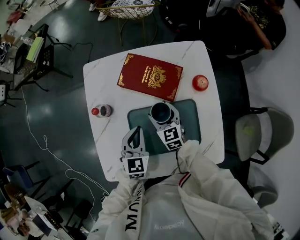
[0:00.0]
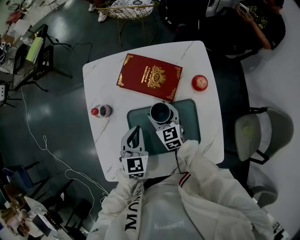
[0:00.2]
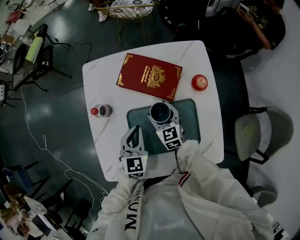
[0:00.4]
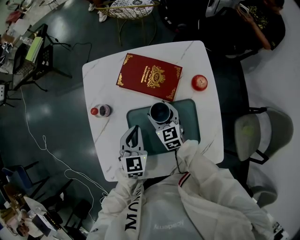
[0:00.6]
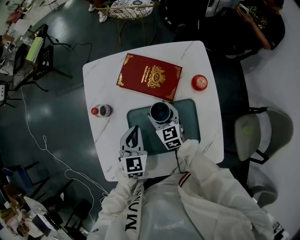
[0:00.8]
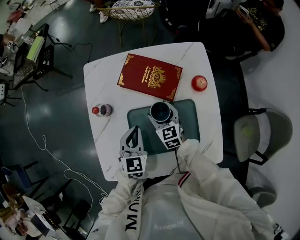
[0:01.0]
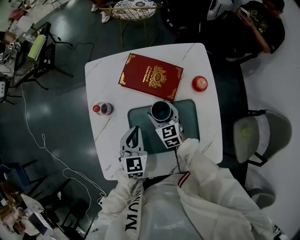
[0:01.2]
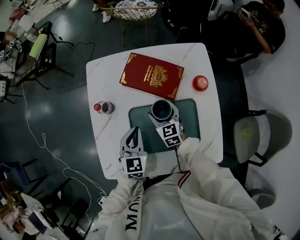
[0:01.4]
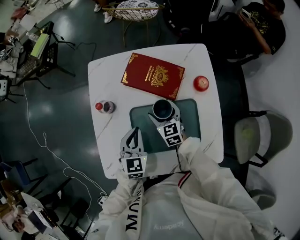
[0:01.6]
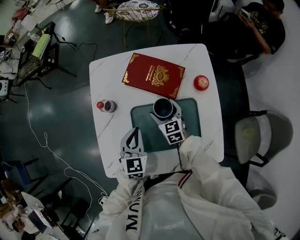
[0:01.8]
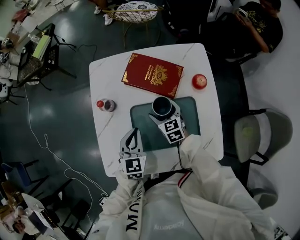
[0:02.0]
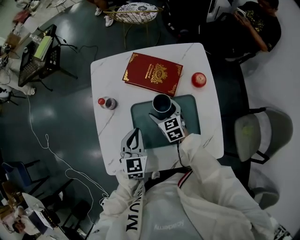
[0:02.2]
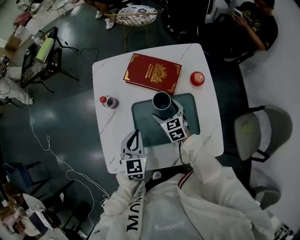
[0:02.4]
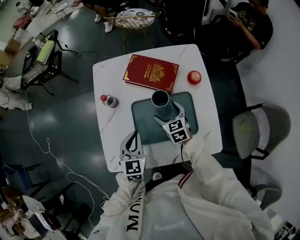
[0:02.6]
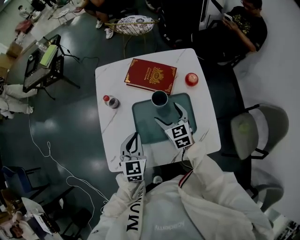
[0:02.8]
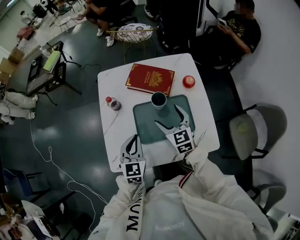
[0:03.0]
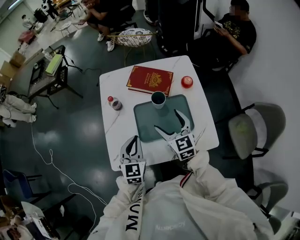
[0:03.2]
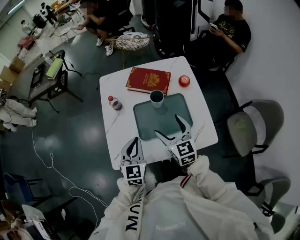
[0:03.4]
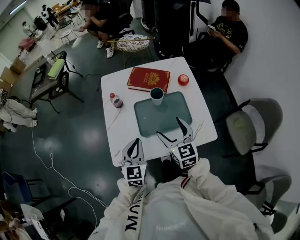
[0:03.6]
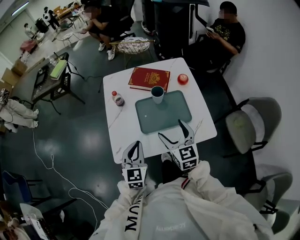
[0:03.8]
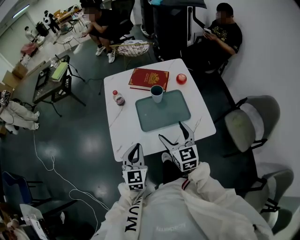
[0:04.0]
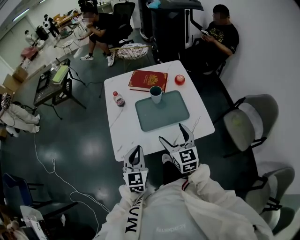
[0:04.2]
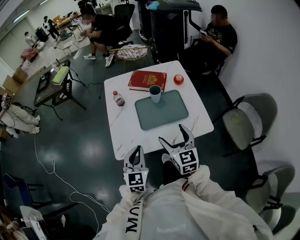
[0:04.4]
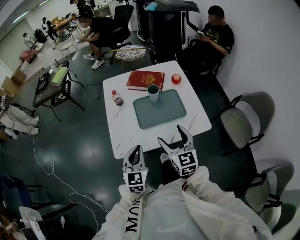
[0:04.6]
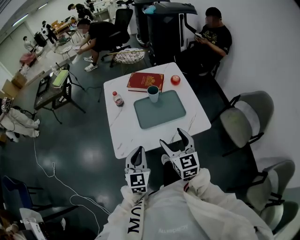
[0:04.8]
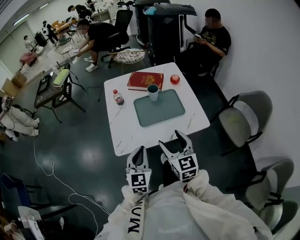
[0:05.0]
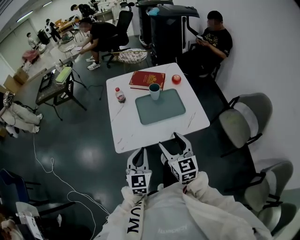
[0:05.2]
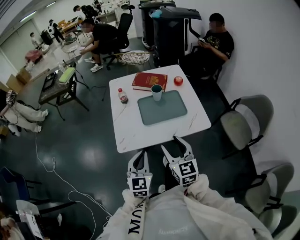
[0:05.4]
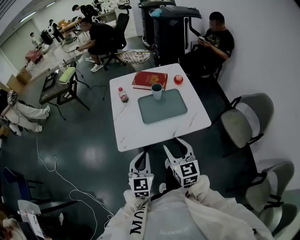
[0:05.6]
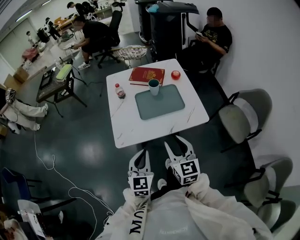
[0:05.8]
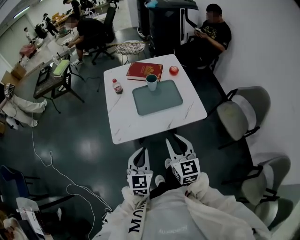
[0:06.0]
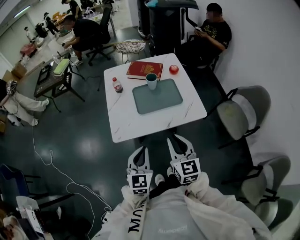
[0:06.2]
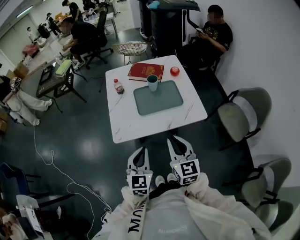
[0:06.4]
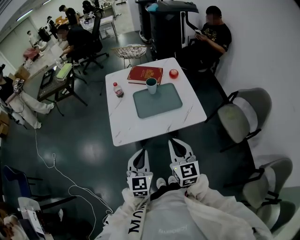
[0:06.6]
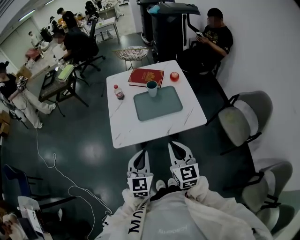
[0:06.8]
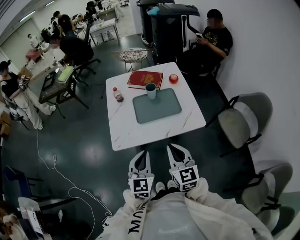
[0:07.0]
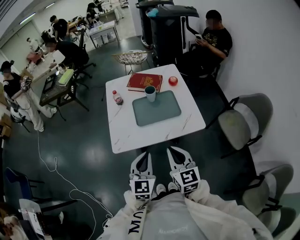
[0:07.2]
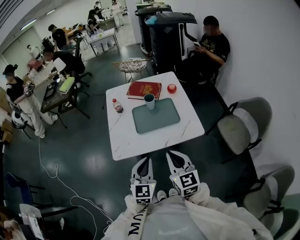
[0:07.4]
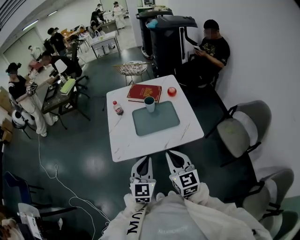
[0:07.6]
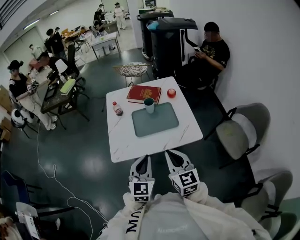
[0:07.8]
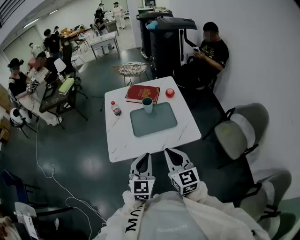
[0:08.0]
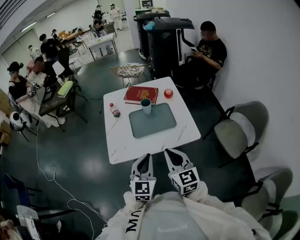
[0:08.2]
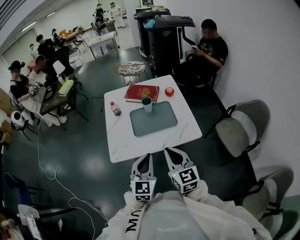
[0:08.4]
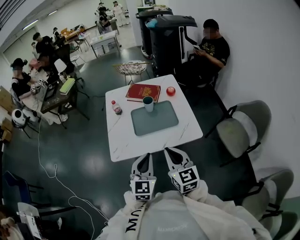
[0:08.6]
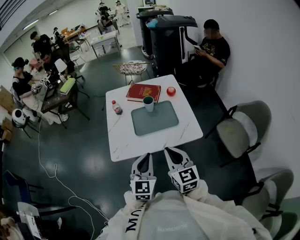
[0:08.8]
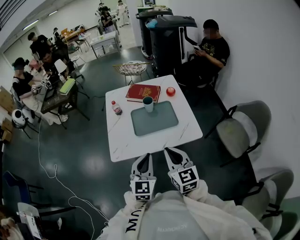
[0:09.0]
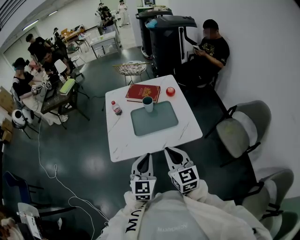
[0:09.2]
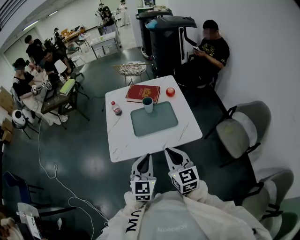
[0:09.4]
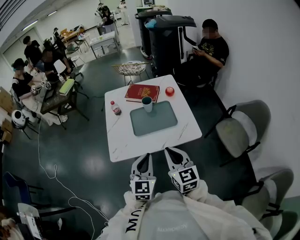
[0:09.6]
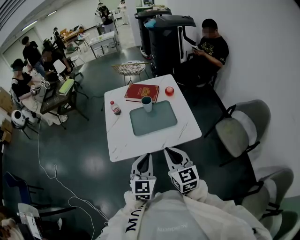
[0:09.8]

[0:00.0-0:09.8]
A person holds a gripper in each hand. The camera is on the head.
0:00.0 to 0:01.4: There are only small adjustments of the grippers.
0:01.4 to 0:02.8: The left gripper heads backward and upward, covering some 10 cm; the right gripper shifts some 10 cm upward and backward.
0:02.8 to 0:04.2: The right gripper goes about 30 cm backward and upward; the left gripper shifts about 20 cm backward.
0:04.2 to 0:05.6: The two grippers go approximately 15 cm backward. The right gripper closes up.
0:05.6 to 0:07.0: The right gripper closes its fingers. Meanwhile the left gripper shifts some 5 cm to the right.
0:07.0 to 0:08.4: The left gripper changes place by roughly 5 cm.
0:08.4 to 0:09.8: Both grippers stay about where they are.

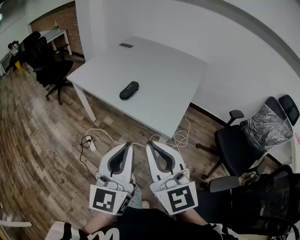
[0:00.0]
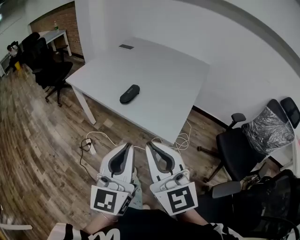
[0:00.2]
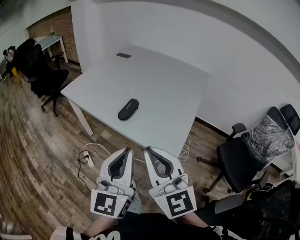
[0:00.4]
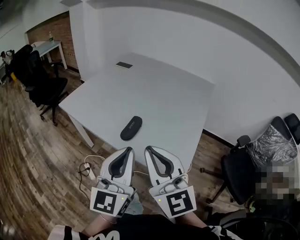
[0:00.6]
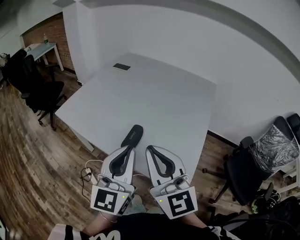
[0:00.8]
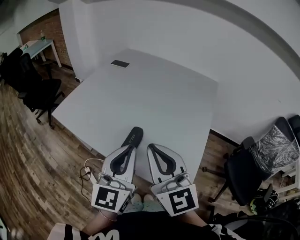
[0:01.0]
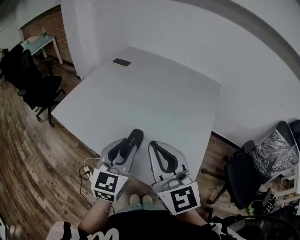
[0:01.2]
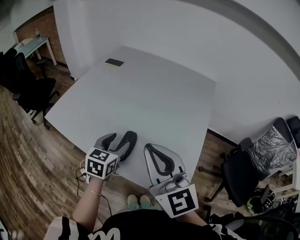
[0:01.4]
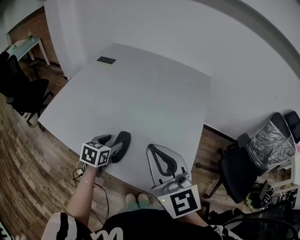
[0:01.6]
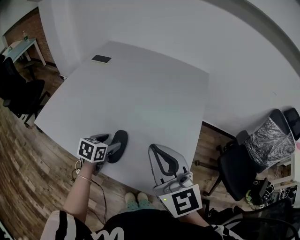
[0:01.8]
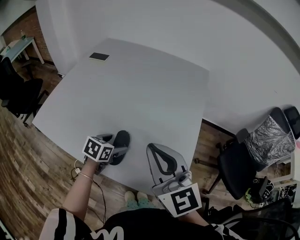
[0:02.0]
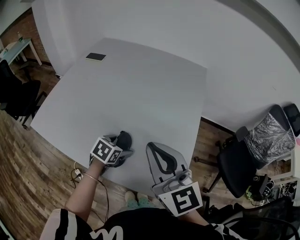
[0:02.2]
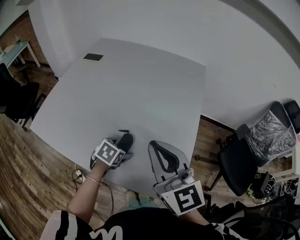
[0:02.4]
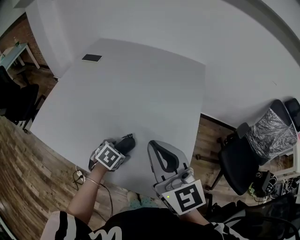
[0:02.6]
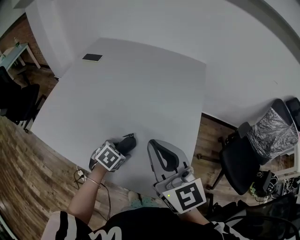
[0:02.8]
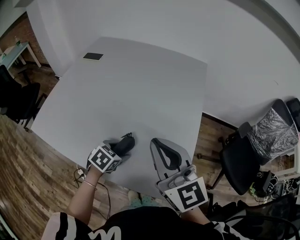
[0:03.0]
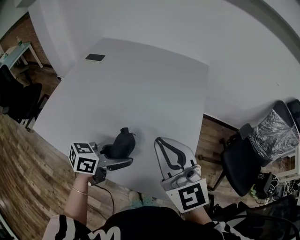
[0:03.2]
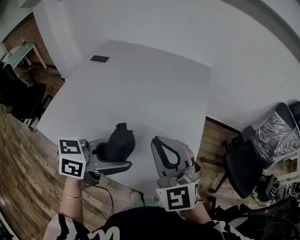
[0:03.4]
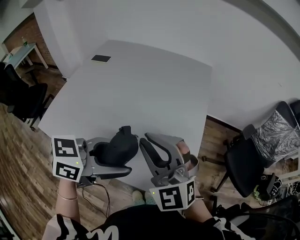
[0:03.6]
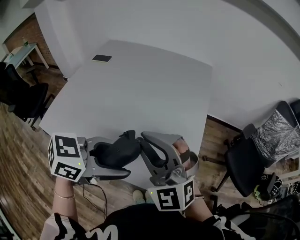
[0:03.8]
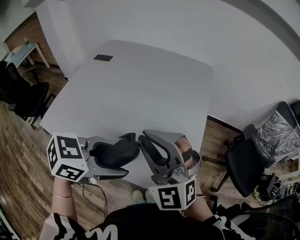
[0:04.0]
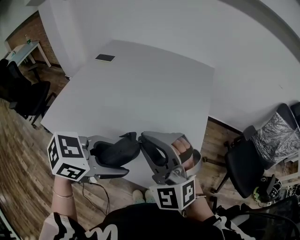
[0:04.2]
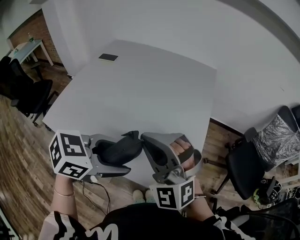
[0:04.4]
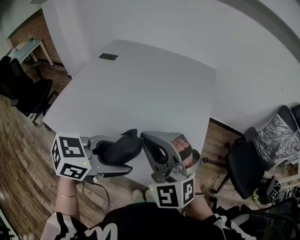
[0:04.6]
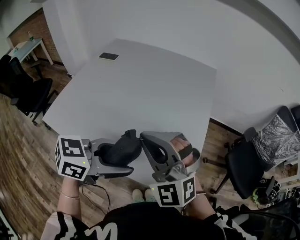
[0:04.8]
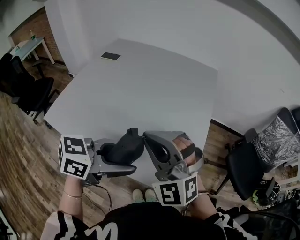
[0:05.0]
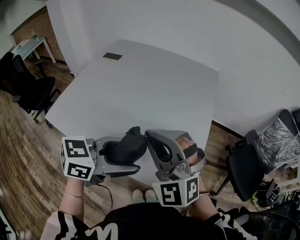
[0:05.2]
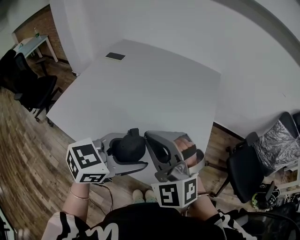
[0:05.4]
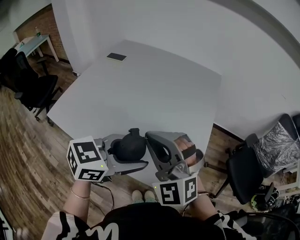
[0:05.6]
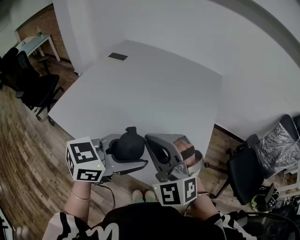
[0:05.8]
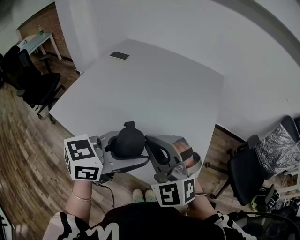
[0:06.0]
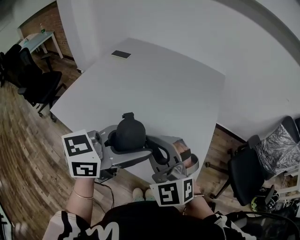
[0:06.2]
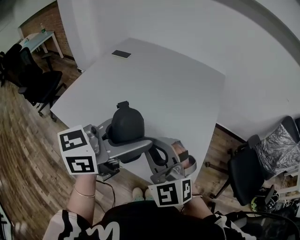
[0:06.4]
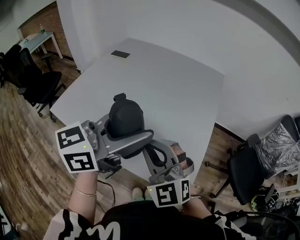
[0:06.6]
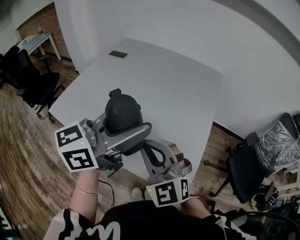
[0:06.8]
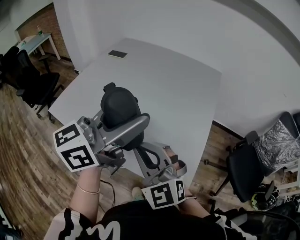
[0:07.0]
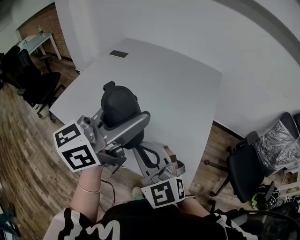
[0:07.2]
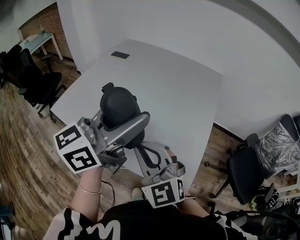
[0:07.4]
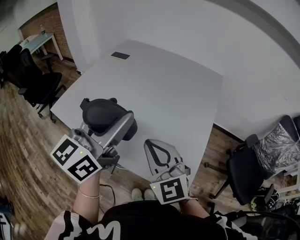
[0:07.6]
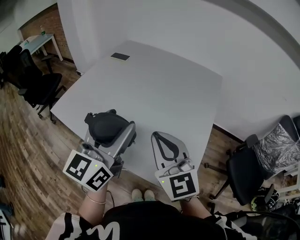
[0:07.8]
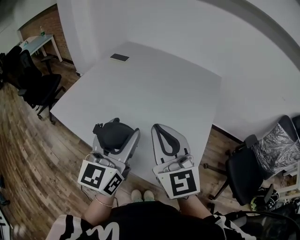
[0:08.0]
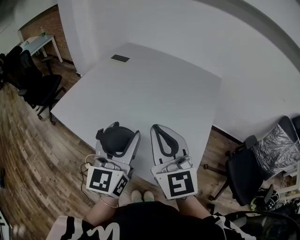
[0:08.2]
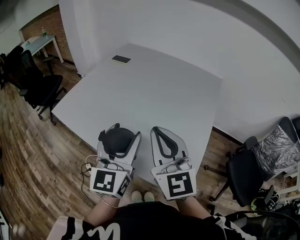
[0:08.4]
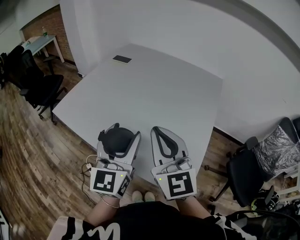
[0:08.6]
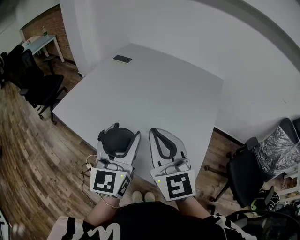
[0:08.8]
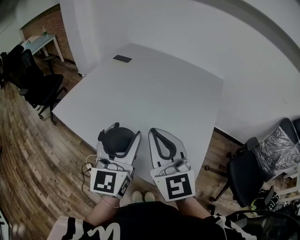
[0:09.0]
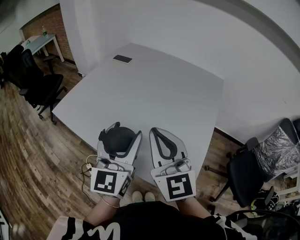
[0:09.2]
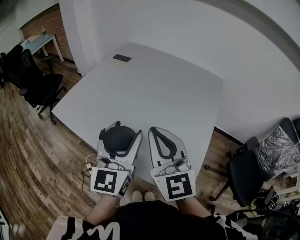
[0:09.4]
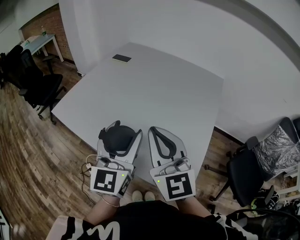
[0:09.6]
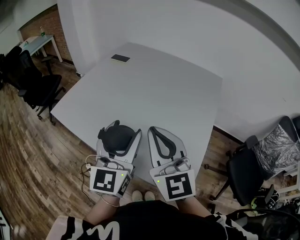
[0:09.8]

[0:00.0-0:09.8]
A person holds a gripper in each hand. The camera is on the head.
0:00.0 to 0:01.4: The grippers both shift forward by about 40 cm. The left gripper angles its fingers downward, by some 40 degrees, and opens its fingers.
0:01.4 to 0:02.8: The right gripper shifts about 10 cm forward and to the right; the left gripper heads downward and to the right, covering about 15 cm, and tilts its fingers approximately 30 degrees downward.
0:02.8 to 0:04.2: The left gripper travels upward by roughly 25 cm, and turns by roughly 30 degrees, while the right gripper shifts some 5 cm backward and to the left, and rolls counterclockwise, seen from behind, by roughly 60 degrees.
0:04.2 to 0:05.6: The grippers move only a little.
0:05.6 to 0:07.0: The left gripper goes about 15 cm upward, and rotates approximately 40 degrees. Meanwhile the right gripper moves some 5 cm, and turns by approximately 20 degrees.
0:07.0 to 0:08.4: The left gripper heads downward, covering approximately 10 cm, and rotates approximately 50 degrees; the right gripper goes some 5 cm upward, and rotates about 30 degrees.
0:08.4 to 0:09.8: The grippers move only a little.

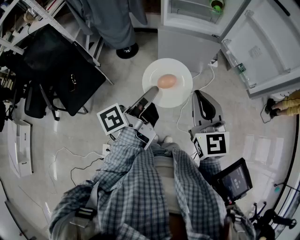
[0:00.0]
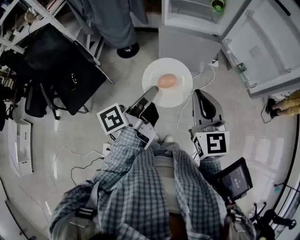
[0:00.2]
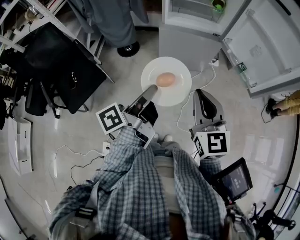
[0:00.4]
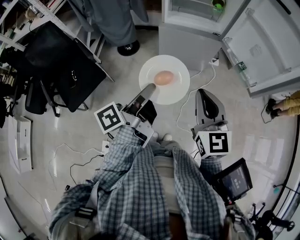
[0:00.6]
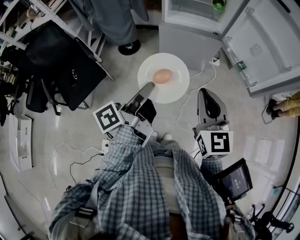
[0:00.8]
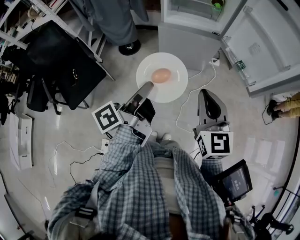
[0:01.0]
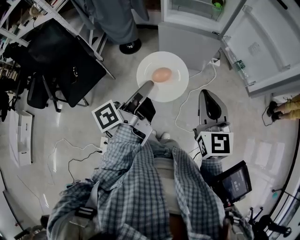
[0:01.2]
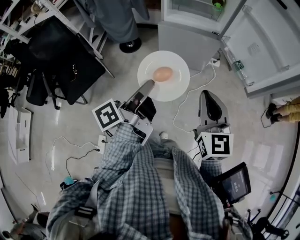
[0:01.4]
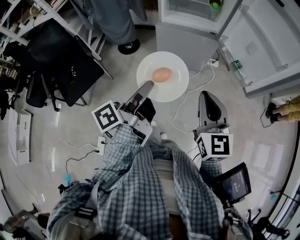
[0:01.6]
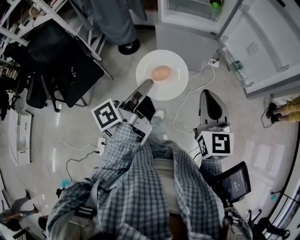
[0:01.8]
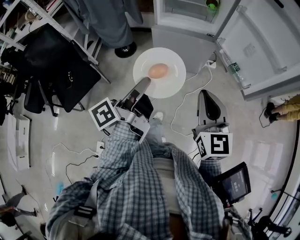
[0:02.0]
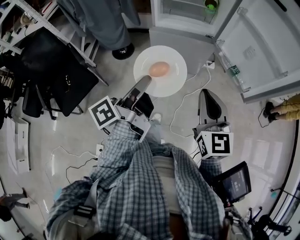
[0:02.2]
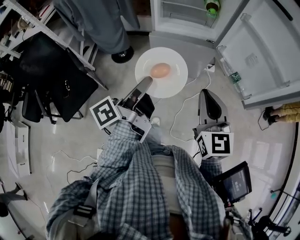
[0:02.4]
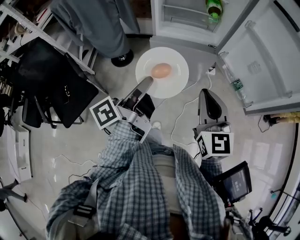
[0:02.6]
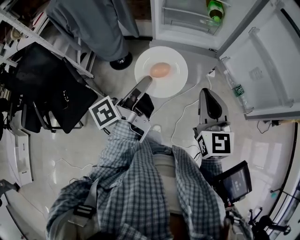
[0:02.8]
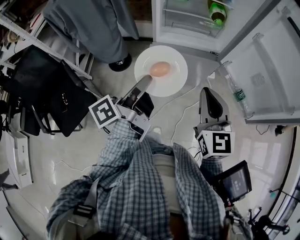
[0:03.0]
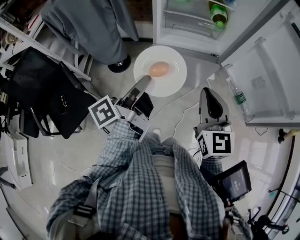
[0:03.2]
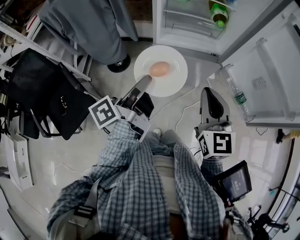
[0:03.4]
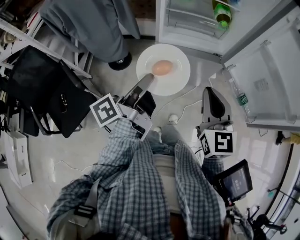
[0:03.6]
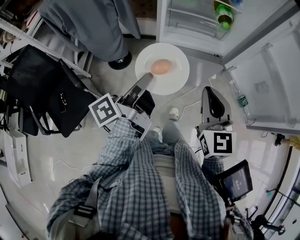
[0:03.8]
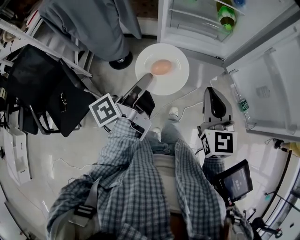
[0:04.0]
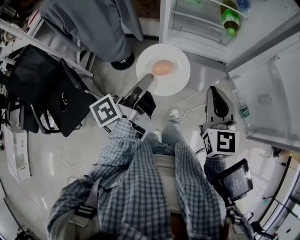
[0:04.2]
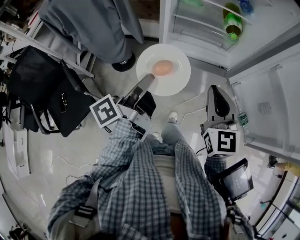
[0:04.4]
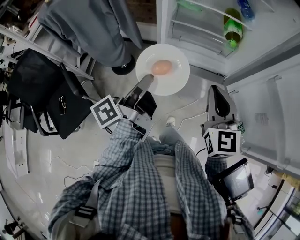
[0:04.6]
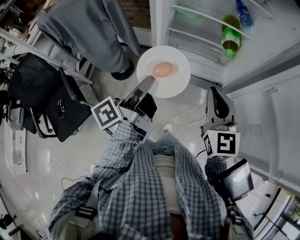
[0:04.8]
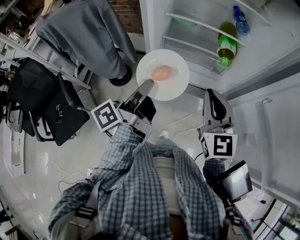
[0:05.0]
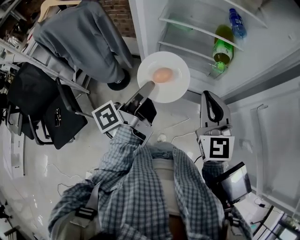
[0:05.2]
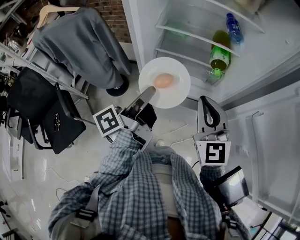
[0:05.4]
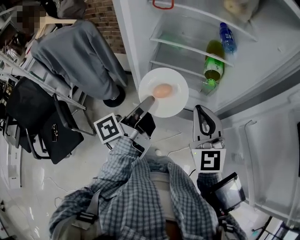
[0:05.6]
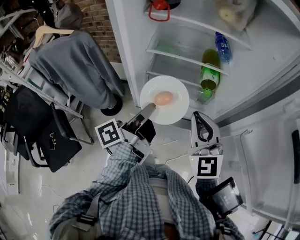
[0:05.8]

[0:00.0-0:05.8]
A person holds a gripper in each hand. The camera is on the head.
0:00.0 to 0:01.4: The right gripper is displaced to the right by approximately 10 cm.
0:01.4 to 0:02.8: Both grippers move forward, about 20 cm.
0:02.8 to 0:04.4: Both grippers move forward, some 15 cm.
0:04.4 to 0:05.8: The right gripper heads forward, covering about 15 cm, while the left gripper is displaced forward and to the right by about 20 cm.
